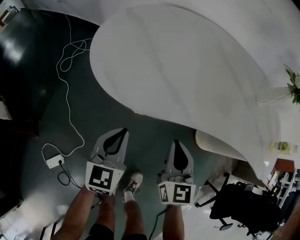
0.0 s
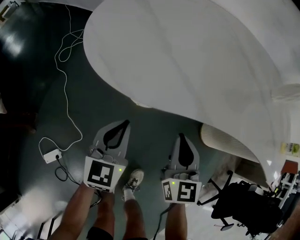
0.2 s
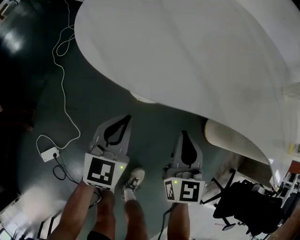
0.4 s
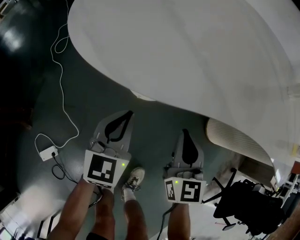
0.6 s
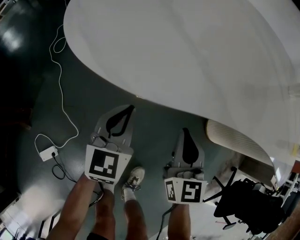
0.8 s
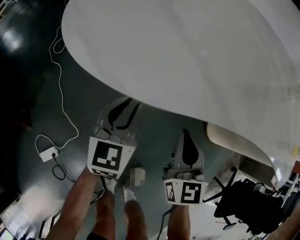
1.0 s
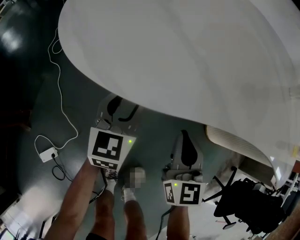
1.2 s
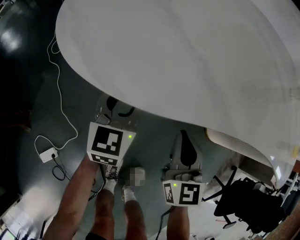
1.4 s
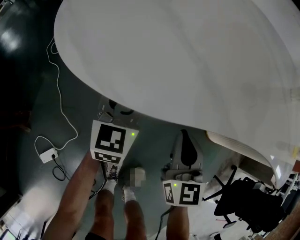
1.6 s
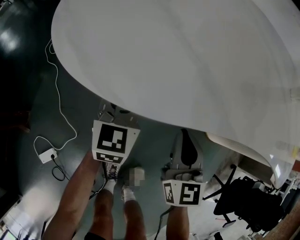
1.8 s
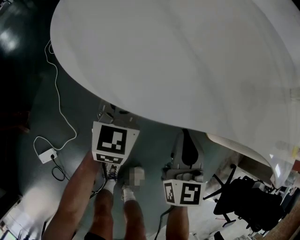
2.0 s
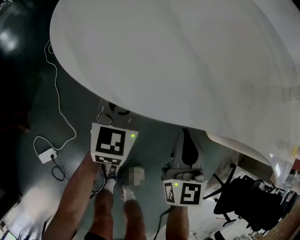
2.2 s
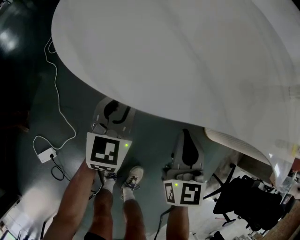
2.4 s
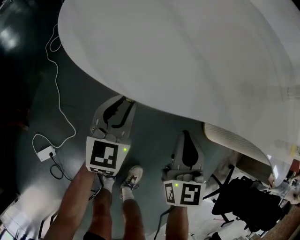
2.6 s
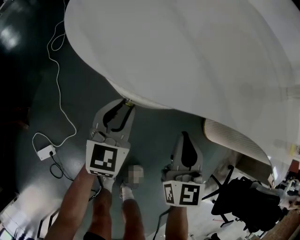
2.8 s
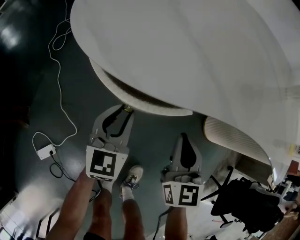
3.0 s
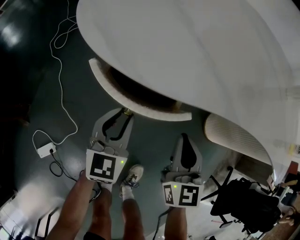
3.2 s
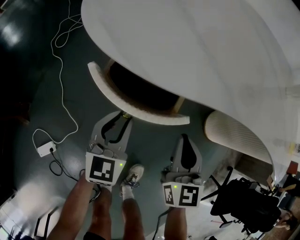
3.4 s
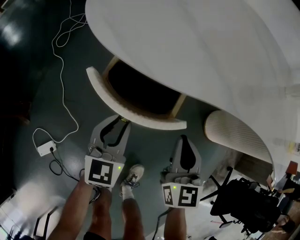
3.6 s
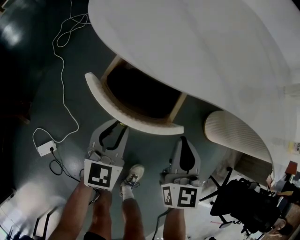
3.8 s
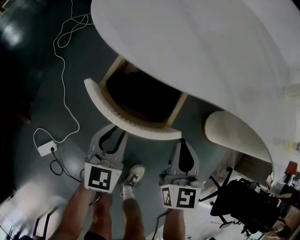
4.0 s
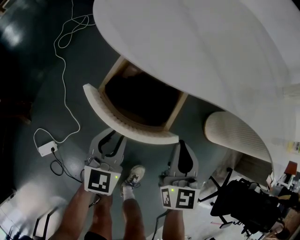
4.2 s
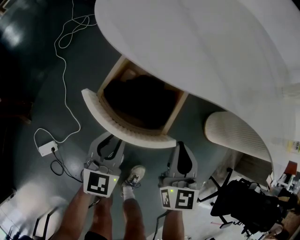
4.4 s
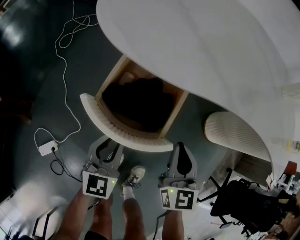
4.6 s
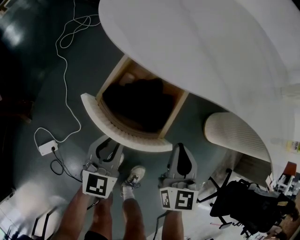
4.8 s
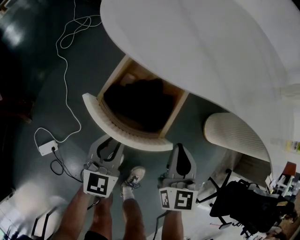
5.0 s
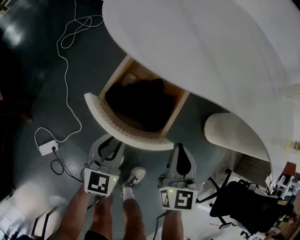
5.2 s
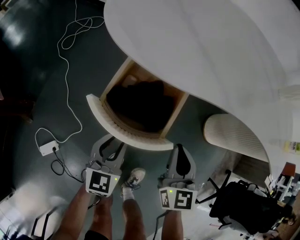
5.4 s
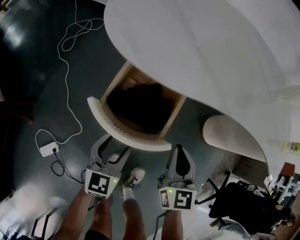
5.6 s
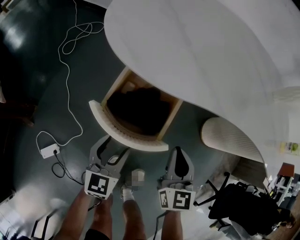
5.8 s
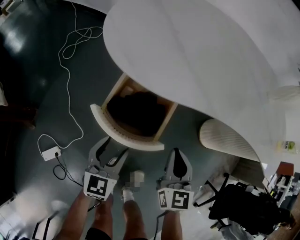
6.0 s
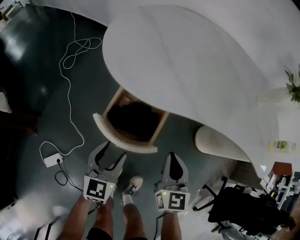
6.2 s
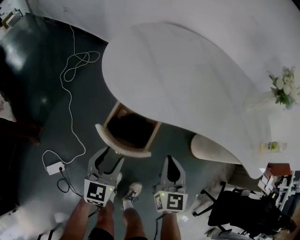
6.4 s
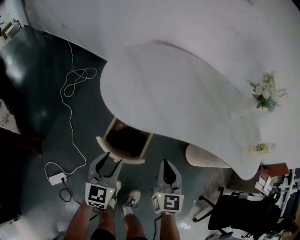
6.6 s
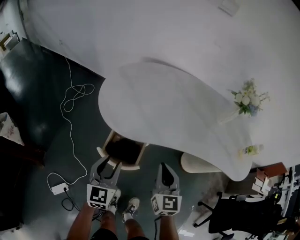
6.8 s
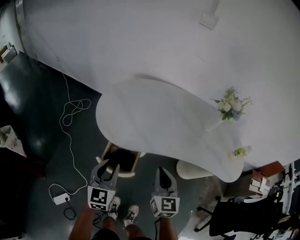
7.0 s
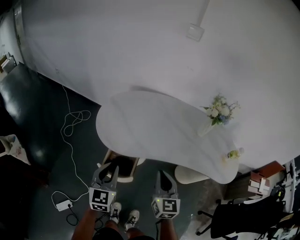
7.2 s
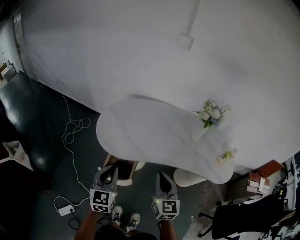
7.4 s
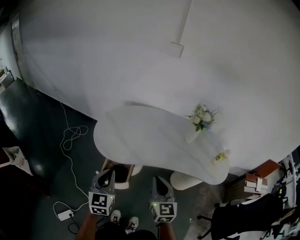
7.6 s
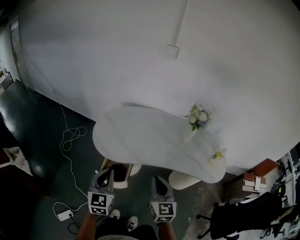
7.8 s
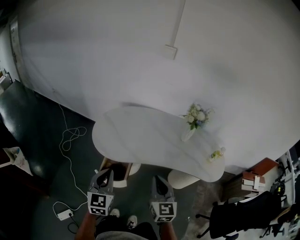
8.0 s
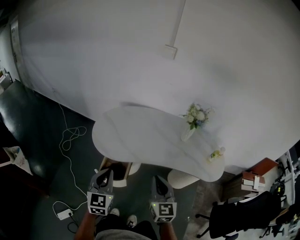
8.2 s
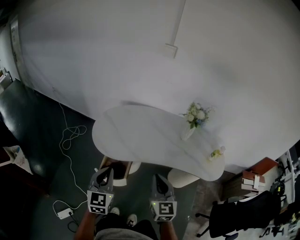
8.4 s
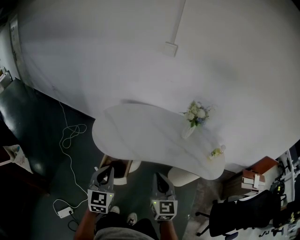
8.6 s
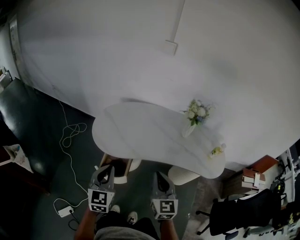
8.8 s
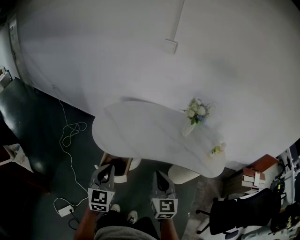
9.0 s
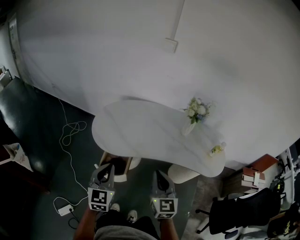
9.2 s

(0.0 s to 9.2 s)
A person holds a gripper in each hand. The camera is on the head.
0.0 s - 1.6 s: The left gripper goes approximately 20 cm downward and forward, and opens its fingers, while the right gripper moves downward, some 10 cm.
1.6 s - 3.0 s: The left gripper is displaced backward by roughly 10 cm.
3.0 s - 4.6 s: The left gripper is displaced backward by roughly 15 cm; the right gripper goes about 5 cm backward.
4.6 s - 6.2 s: Both grippers travel together upward, approximately 10 cm. The left gripper opens its fingers.
6.2 s - 7.6 s: The two grippers go approximately 35 cm upward. The left gripper closes.
7.6 s - 9.2 s: The right gripper shifts by roughly 5 cm.

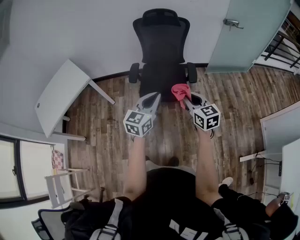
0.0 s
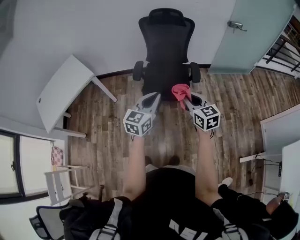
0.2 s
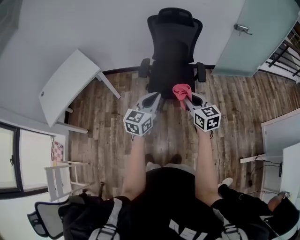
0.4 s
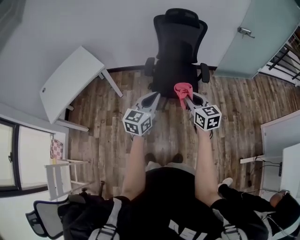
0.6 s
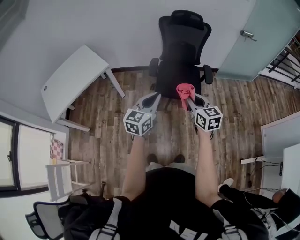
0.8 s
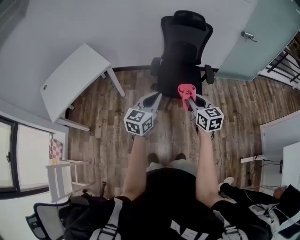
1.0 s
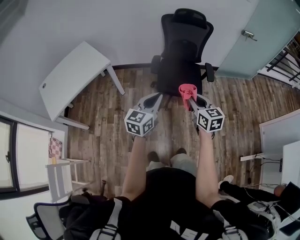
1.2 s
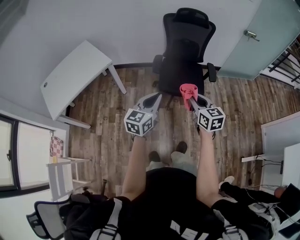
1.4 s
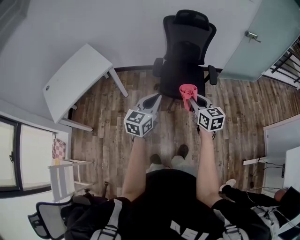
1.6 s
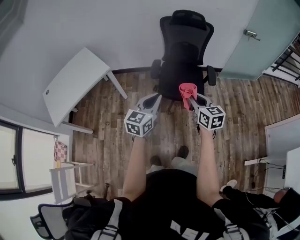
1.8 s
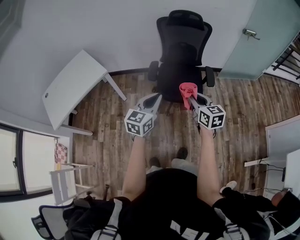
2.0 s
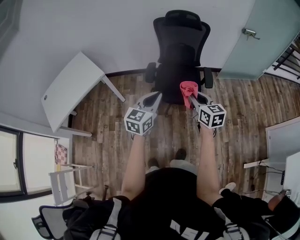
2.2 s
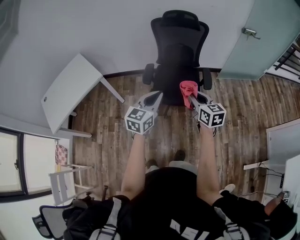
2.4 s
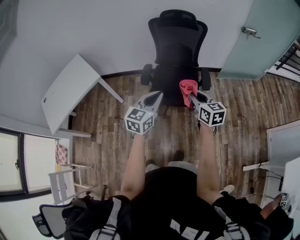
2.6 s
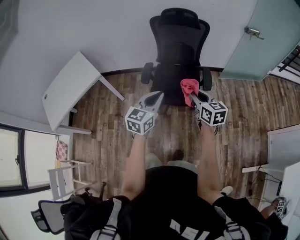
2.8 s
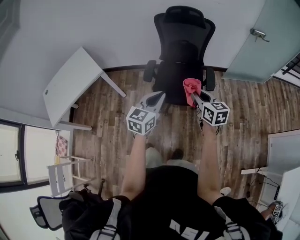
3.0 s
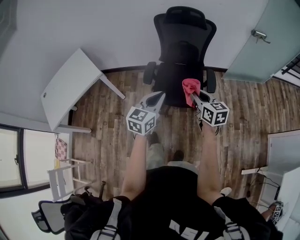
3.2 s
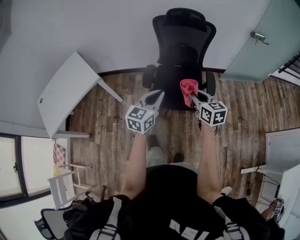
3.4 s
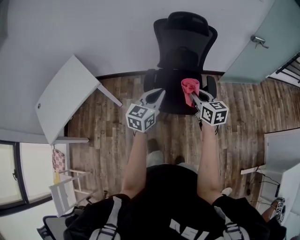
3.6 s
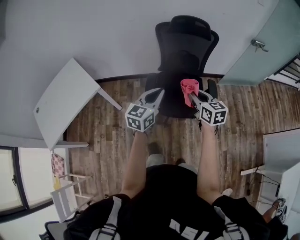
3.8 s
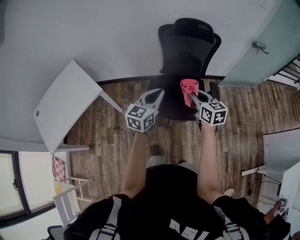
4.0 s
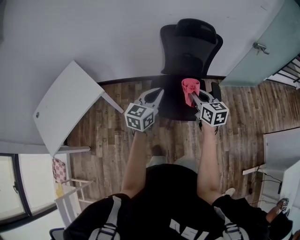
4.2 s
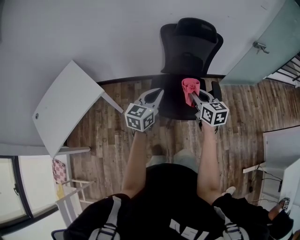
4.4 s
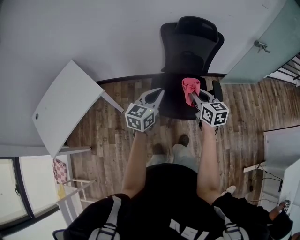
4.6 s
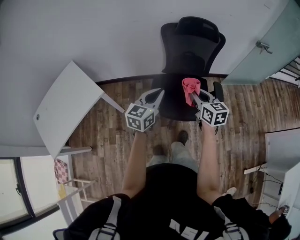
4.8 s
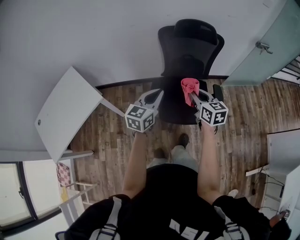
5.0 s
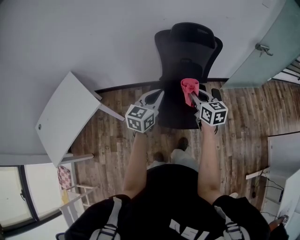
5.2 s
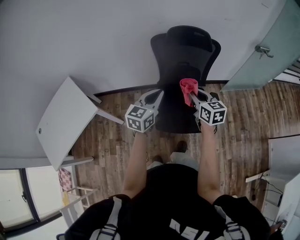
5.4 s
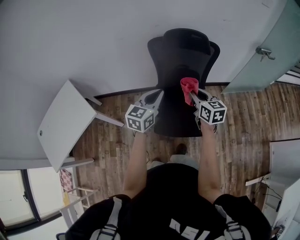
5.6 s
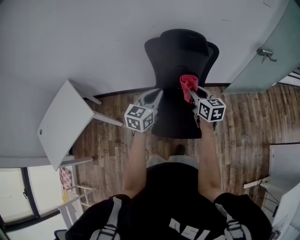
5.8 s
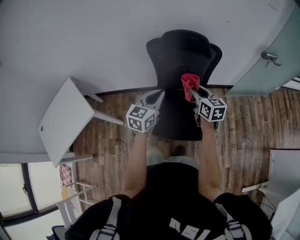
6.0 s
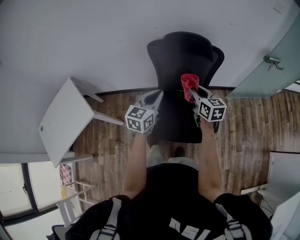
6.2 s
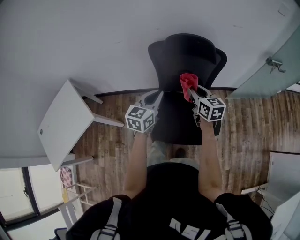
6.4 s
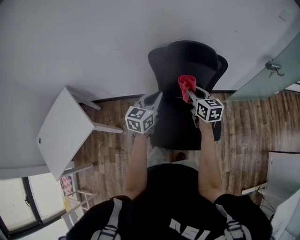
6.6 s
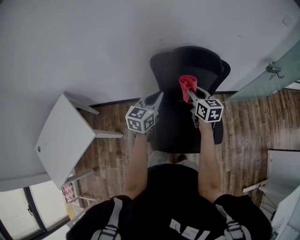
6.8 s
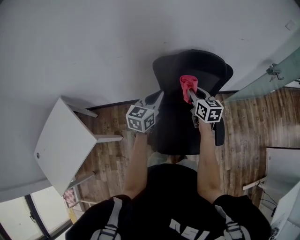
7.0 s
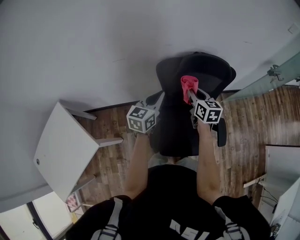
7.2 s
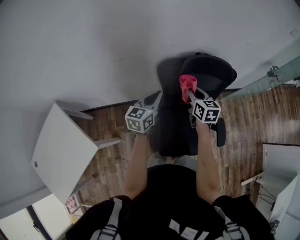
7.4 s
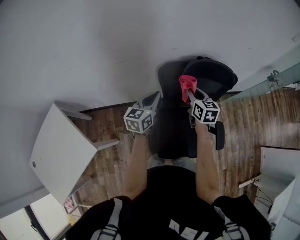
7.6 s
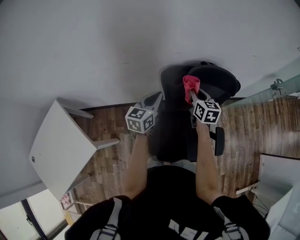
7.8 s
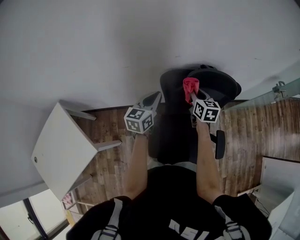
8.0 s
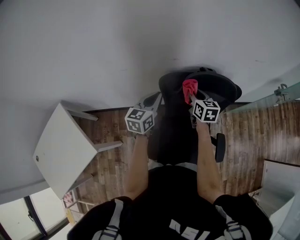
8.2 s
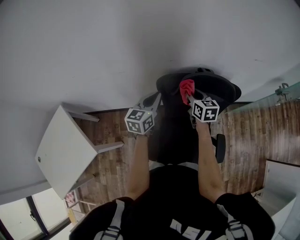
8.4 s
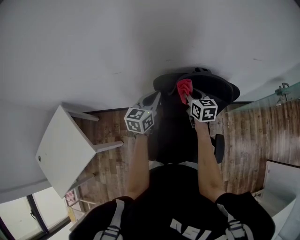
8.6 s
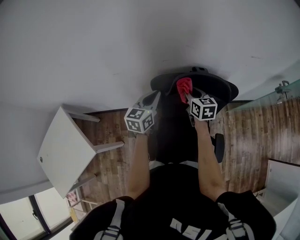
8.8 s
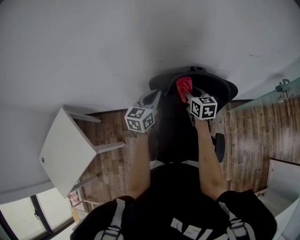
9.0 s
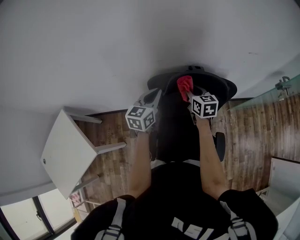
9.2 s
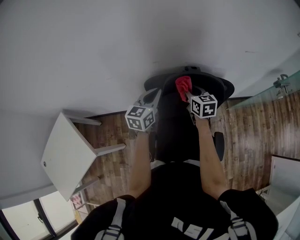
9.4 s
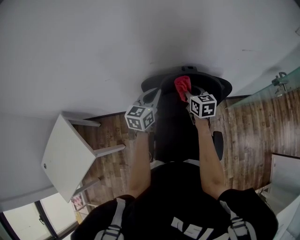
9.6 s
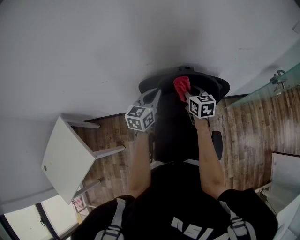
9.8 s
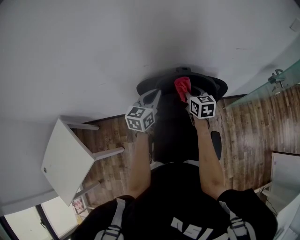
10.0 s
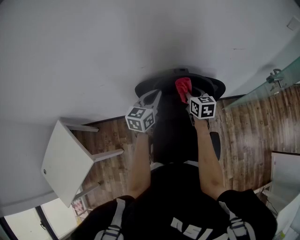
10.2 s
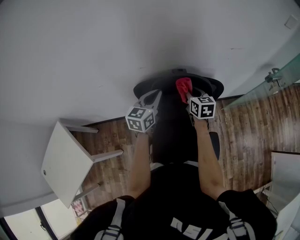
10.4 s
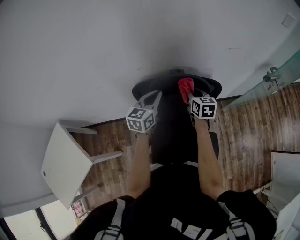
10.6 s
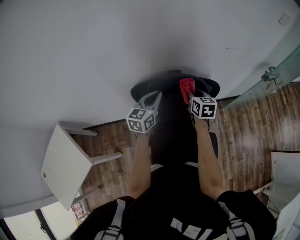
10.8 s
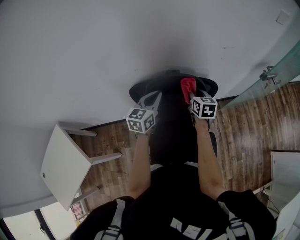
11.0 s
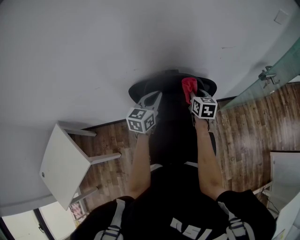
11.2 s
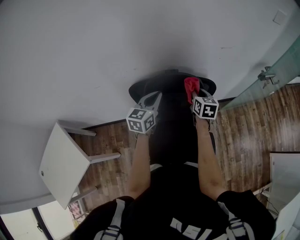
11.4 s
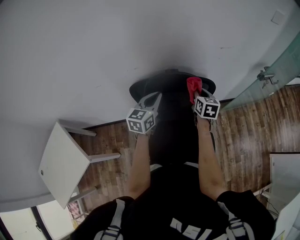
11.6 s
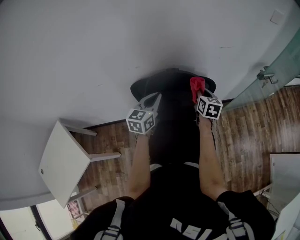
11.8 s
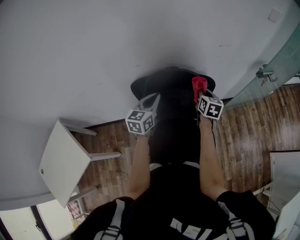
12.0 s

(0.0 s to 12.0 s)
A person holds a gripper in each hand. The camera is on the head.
0.0 s - 1.6 s: Both grippers move to the left, some 20 cm.
1.6 s - 3.0 s: The left gripper shifts some 20 cm to the right and forward; the right gripper is displaced forward and to the right by some 20 cm.
3.0 s - 4.4 s: The two grippers go roughly 25 cm to the left and forward.
4.4 s - 6.0 s: The grippers both shift forward and to the right by approximately 25 cm.
6.0 s - 7.6 s: Both grippers travel together forward and to the left, approximately 30 cm.
7.6 s - 9.0 s: The two grippers go roughly 10 cm forward and to the right.
9.0 s - 10.4 s: The two grippers go approximately 10 cm to the right.
10.4 s - 12.0 s: The left gripper travels backward by approximately 5 cm; the right gripper moves to the right, roughly 10 cm.

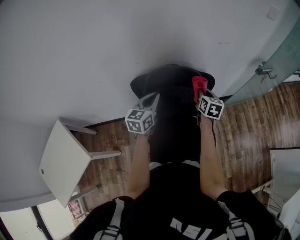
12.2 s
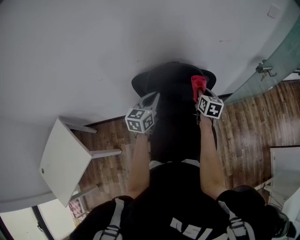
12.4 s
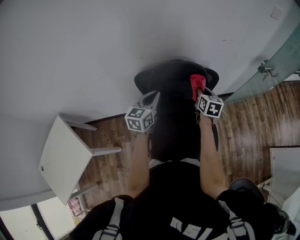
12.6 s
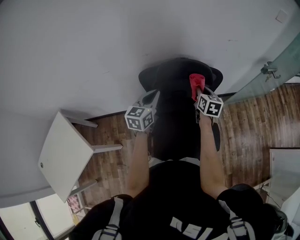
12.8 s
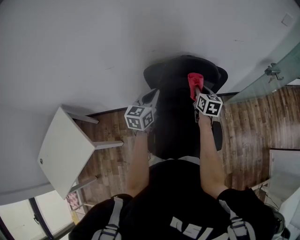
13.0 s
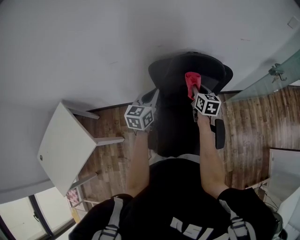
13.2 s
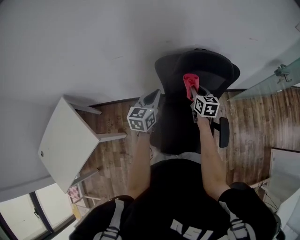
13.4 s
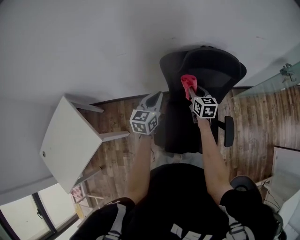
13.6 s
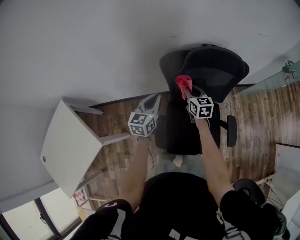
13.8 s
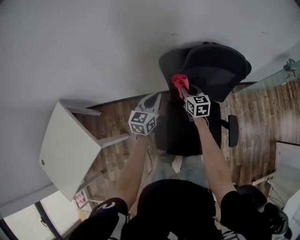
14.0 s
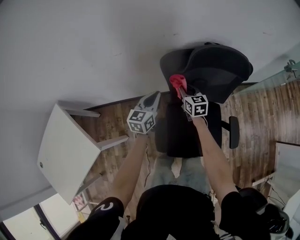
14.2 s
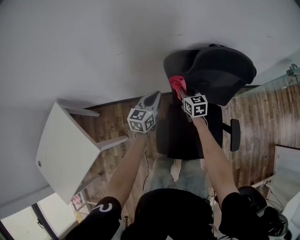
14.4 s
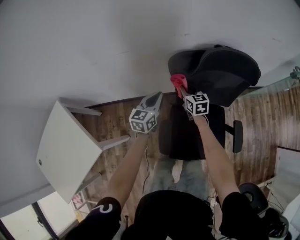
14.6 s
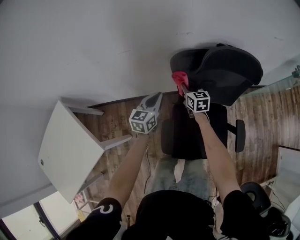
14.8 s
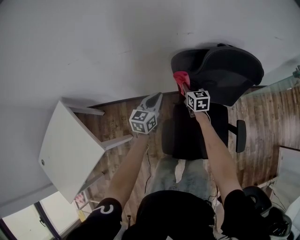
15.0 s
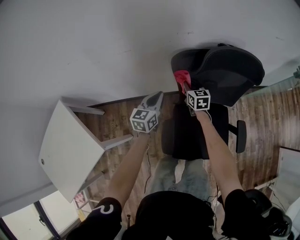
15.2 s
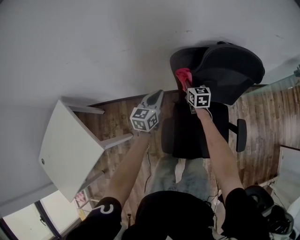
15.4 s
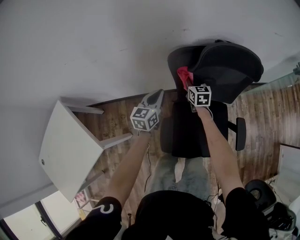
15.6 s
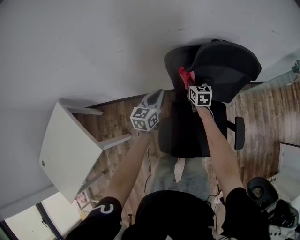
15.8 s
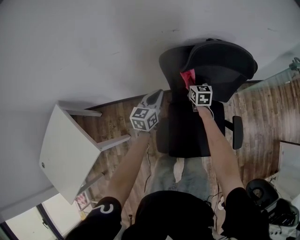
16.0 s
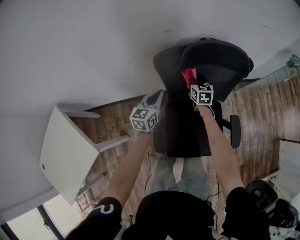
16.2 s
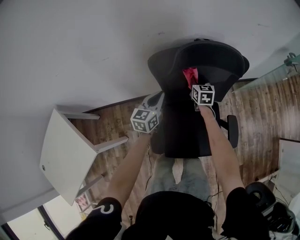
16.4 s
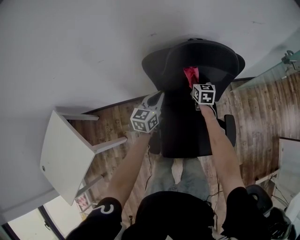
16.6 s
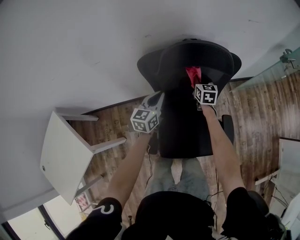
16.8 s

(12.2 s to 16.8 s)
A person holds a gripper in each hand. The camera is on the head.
12.2 s - 13.8 s: The grippers both shift to the left and downward by roughly 25 cm. The right gripper rotates some 20 degrees.
13.8 s - 15.2 s: The right gripper goes some 15 cm downward, forward and to the left. The left gripper heads downward, covering about 10 cm.
15.2 s - 16.8 s: Both grippers move to the right, some 20 cm.
